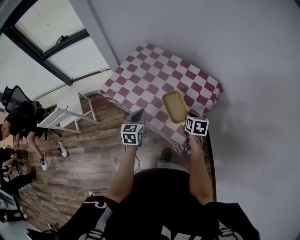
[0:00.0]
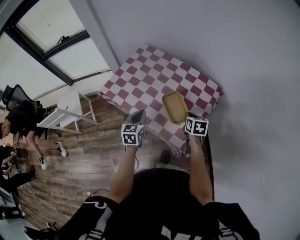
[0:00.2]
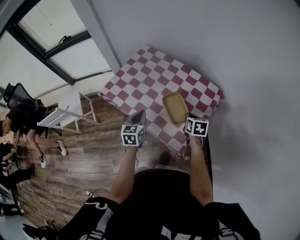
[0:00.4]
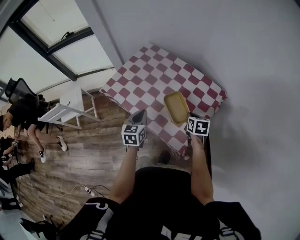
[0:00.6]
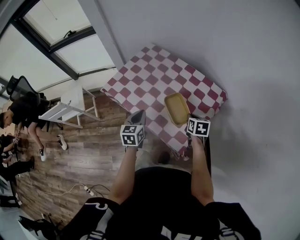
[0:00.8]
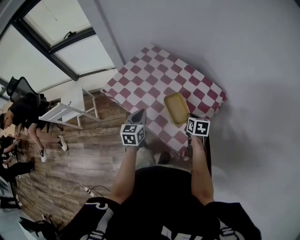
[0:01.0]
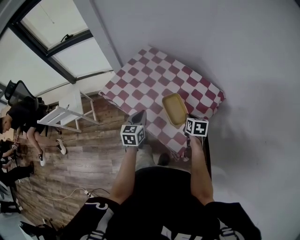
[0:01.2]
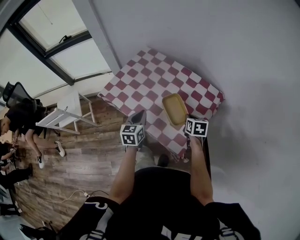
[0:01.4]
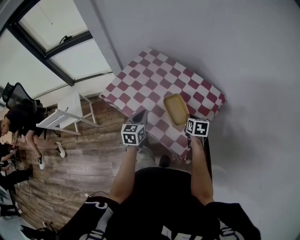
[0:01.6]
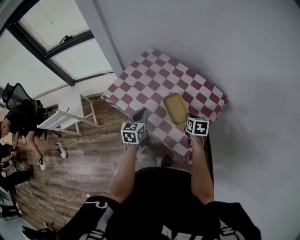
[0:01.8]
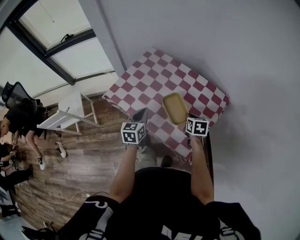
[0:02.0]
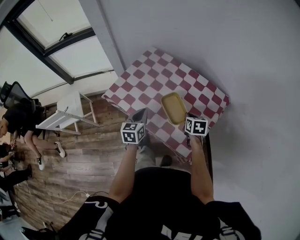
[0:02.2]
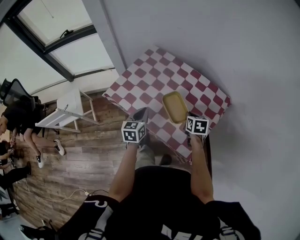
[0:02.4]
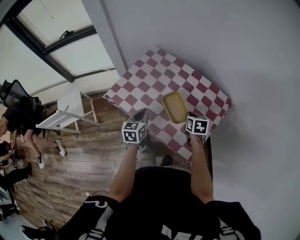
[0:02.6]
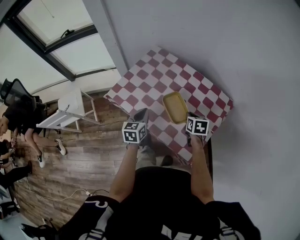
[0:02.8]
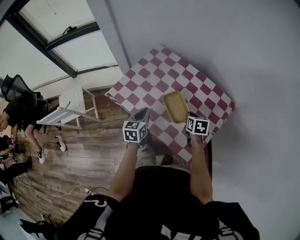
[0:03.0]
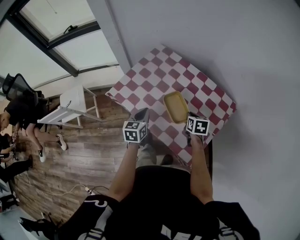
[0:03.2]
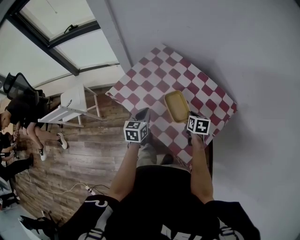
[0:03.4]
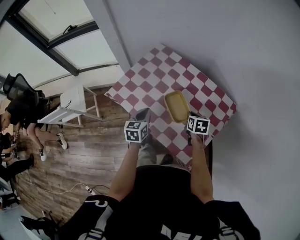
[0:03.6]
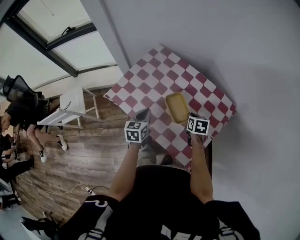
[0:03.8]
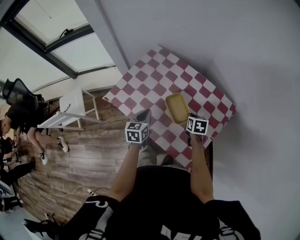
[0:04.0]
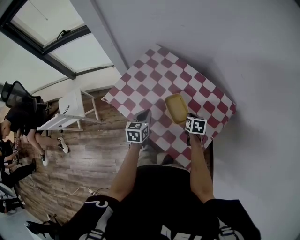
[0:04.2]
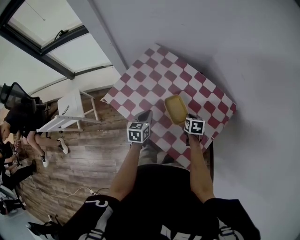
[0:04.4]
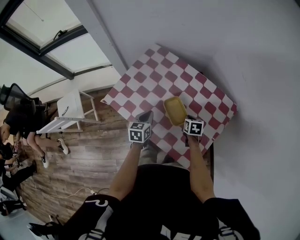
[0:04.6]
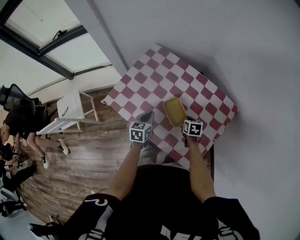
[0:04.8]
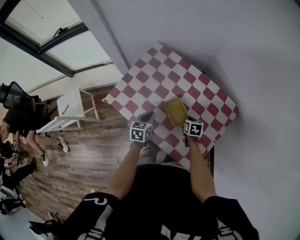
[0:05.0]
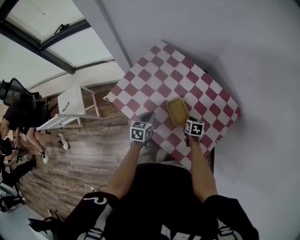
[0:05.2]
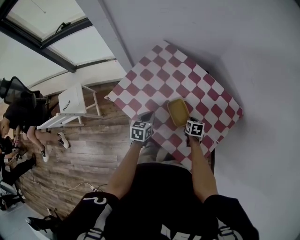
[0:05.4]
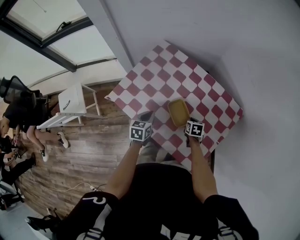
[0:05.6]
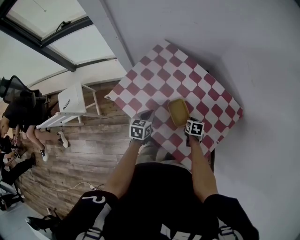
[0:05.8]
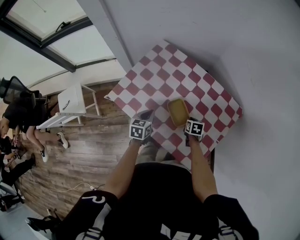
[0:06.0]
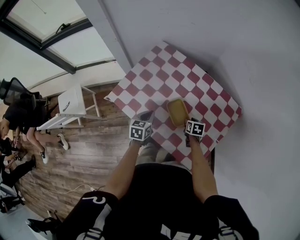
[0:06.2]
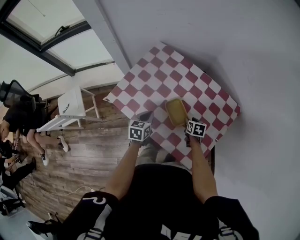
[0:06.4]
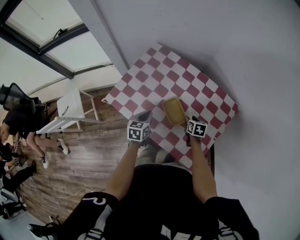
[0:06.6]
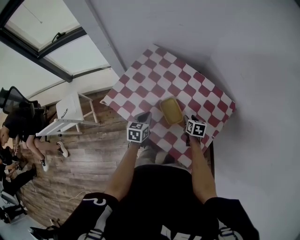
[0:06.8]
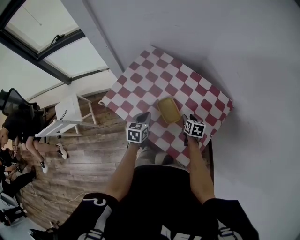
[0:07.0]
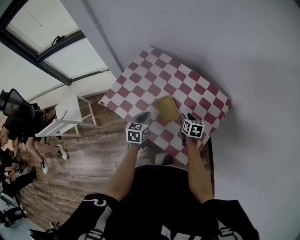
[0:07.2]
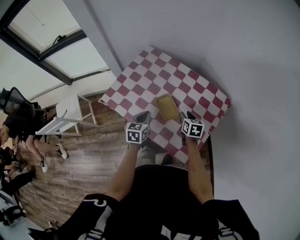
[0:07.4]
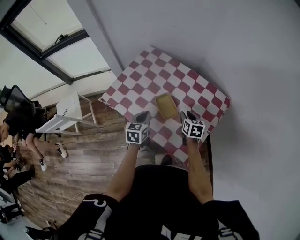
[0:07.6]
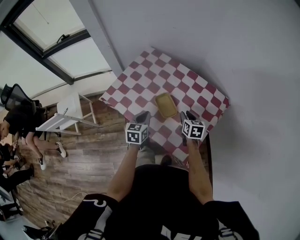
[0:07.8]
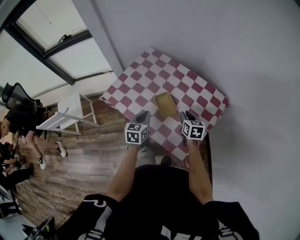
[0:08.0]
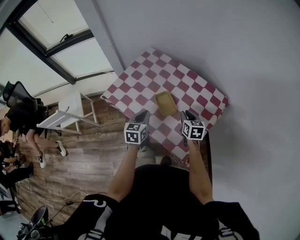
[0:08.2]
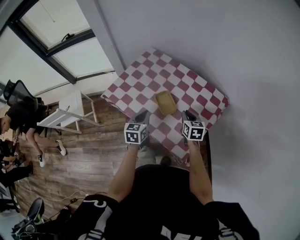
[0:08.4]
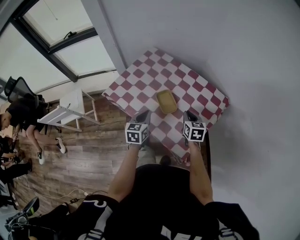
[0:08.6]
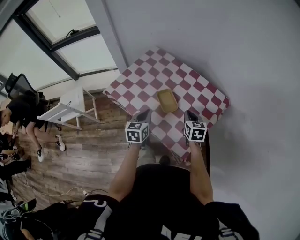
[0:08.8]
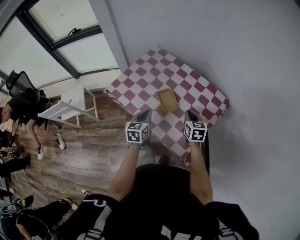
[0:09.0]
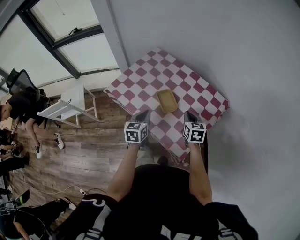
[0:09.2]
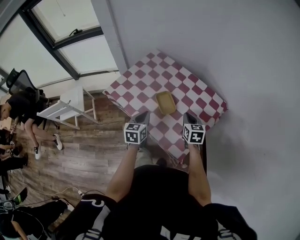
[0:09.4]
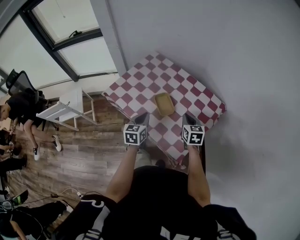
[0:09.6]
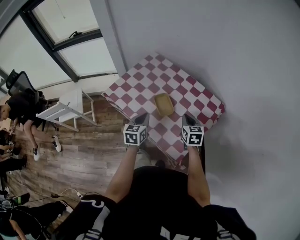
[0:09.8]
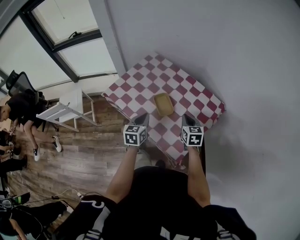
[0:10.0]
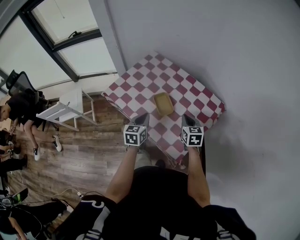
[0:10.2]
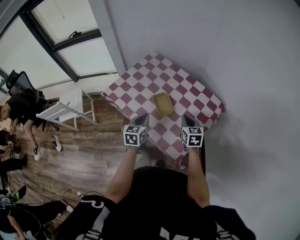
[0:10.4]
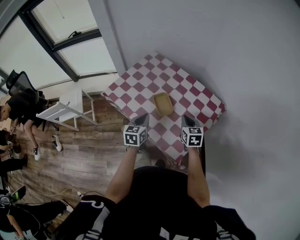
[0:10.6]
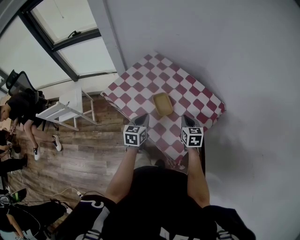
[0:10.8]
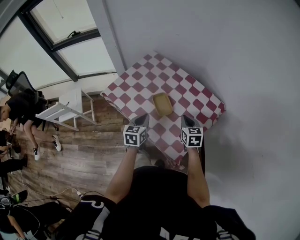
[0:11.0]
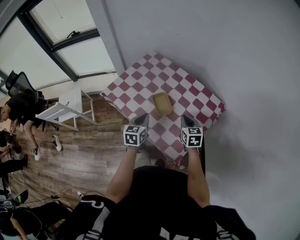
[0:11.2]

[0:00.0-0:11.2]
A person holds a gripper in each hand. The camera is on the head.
0:00.0 to 0:01.6: The grippers both shift forward by approximately 5 cm.
0:01.6 to 0:03.2: The grippers both shift to the left and forward by about 10 cm.
0:03.2 to 0:04.8: The right gripper is displaced downward and forward by roughly 10 cm. The left gripper travels forward and downward by roughly 10 cm.
0:04.8 to 0:06.4: The right gripper opens up.
0:06.4 to 0:08.0: The right gripper travels upward and backward by about 15 cm, swivels approximately 20 degrees, and closes up; the left gripper moves backward, upward and to the right, roughly 15 cm.
0:08.0 to 0:09.6: The left gripper moves approximately 5 cm. The right gripper changes place by approximately 5 cm, and closes.
0:09.6 to 0:11.2: The grippers stay close to where they were, moving slightly.

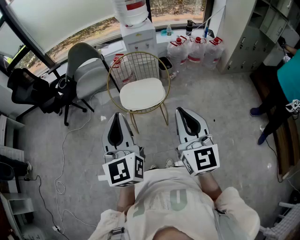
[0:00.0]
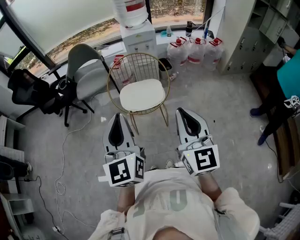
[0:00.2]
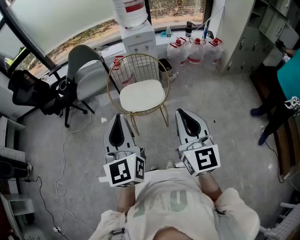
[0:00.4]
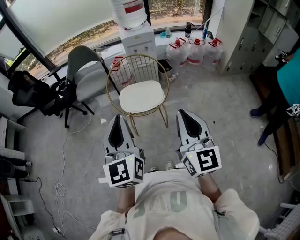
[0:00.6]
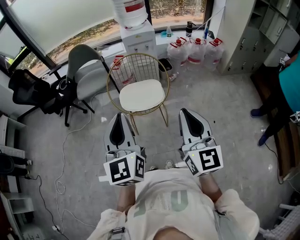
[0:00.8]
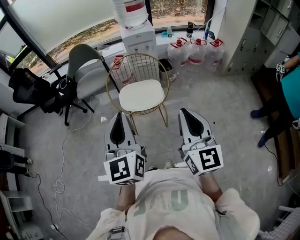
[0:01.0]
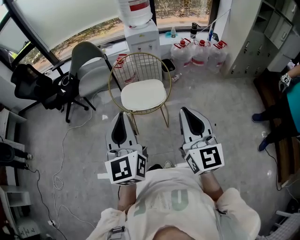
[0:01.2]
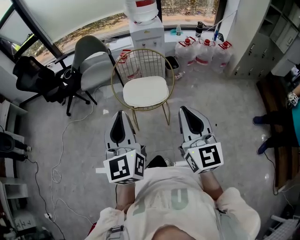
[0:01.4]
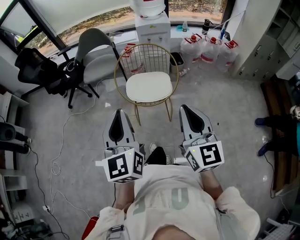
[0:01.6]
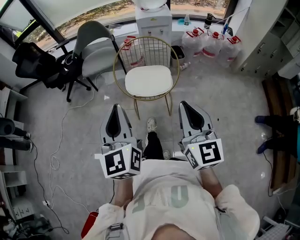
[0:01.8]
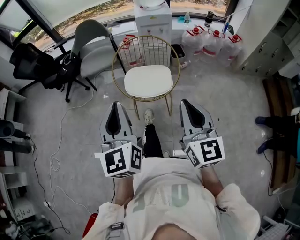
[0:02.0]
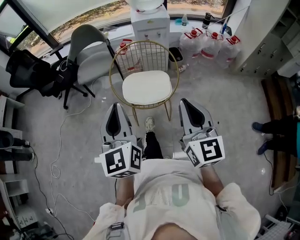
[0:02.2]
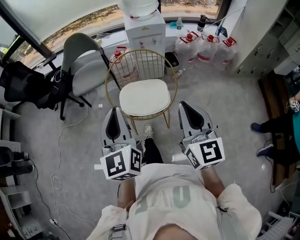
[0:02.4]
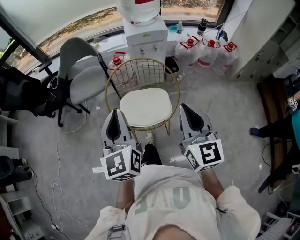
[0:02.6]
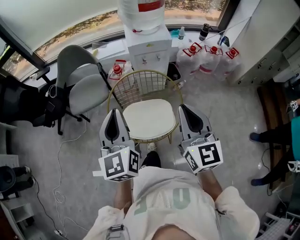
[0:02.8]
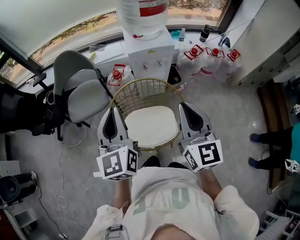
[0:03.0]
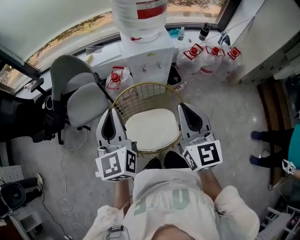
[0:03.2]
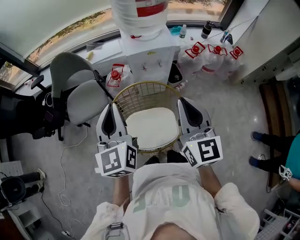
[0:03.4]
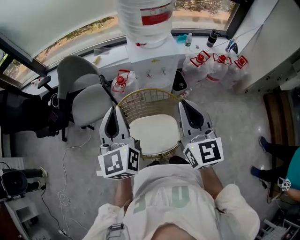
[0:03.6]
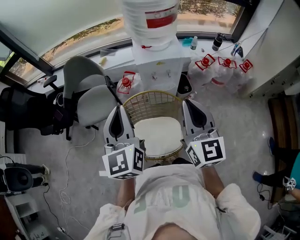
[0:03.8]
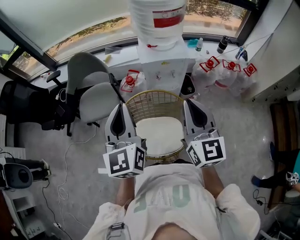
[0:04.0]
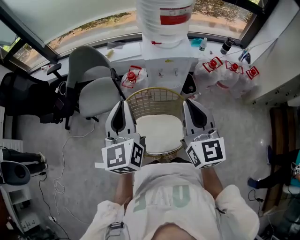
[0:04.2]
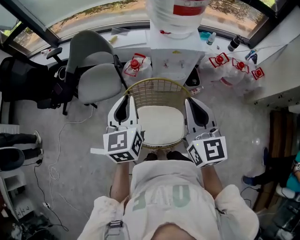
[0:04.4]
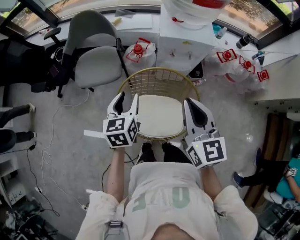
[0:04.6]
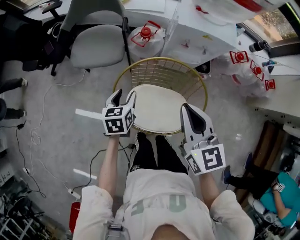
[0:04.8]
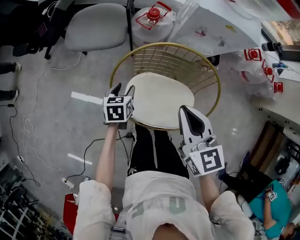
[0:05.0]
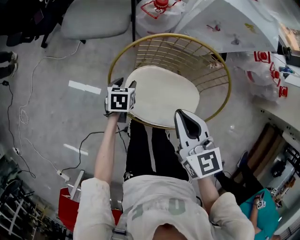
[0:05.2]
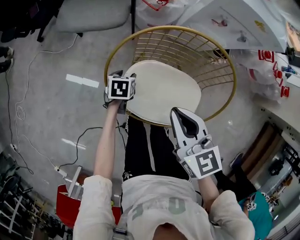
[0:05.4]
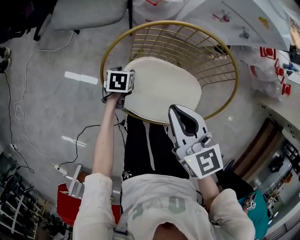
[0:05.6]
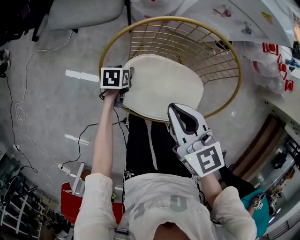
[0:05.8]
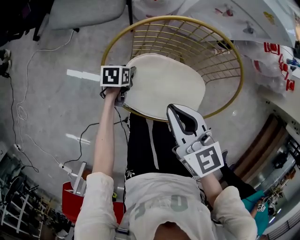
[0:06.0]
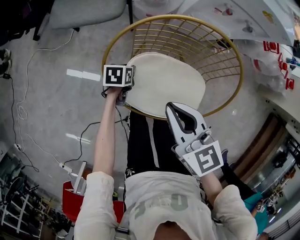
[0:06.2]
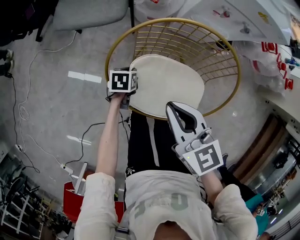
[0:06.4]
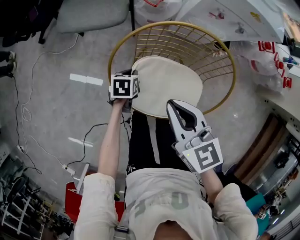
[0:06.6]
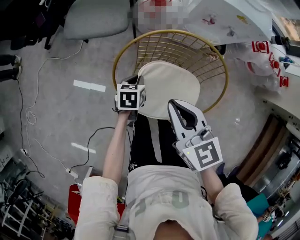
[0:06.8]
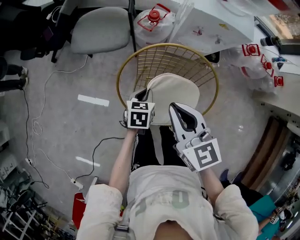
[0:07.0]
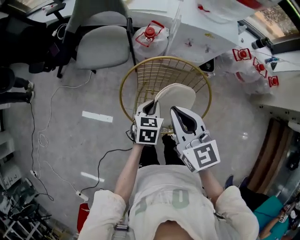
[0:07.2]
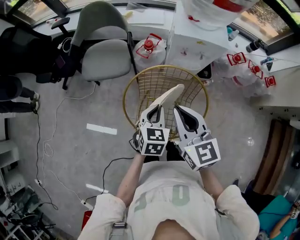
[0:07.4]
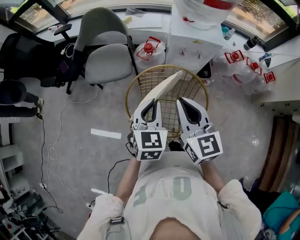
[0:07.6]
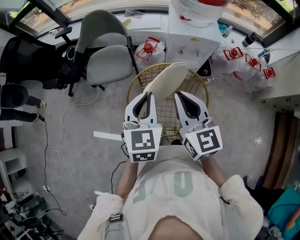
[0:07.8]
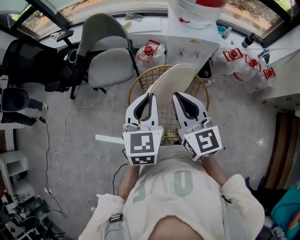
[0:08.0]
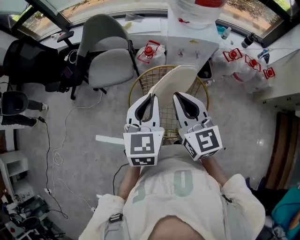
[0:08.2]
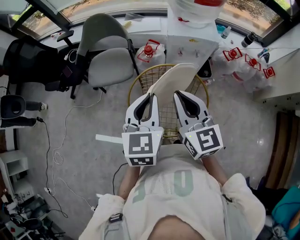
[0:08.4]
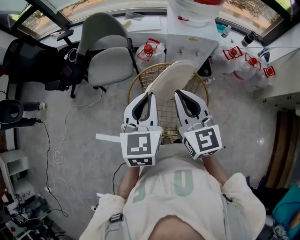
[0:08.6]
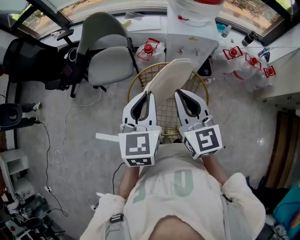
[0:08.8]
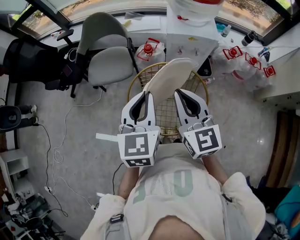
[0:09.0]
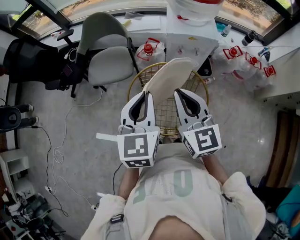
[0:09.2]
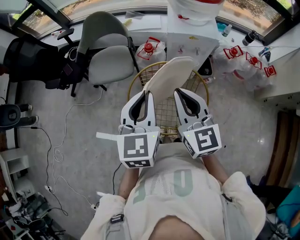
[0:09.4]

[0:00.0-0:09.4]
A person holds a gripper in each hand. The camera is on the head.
0:00.0 to 0:01.6: The grippers make only small movements.
0:01.6 to 0:03.2: Both grippers are carried forward, roughly 50 cm.
0:03.2 to 0:04.8: The right gripper heads downward, to the left and forward, covering some 15 cm, and rotates some 30 degrees. Meanwhile the left gripper travels downward by approximately 30 cm, tips its fingers downward by roughly 40 degrees, and opens.
0:04.8 to 0:06.2: The right gripper shifts approximately 20 cm downward and to the left, and changes its angle by approximately 20 degrees. Meanwhile the left gripper is displaced downward by about 30 cm, and turns by some 30 degrees.
0:06.2 to 0:07.8: The left gripper goes roughly 50 cm upward, angles its fingers upward, by roughly 40 degrees, and closes, while the right gripper moves upward, roughly 25 cm, and rotates roughly 30 degrees.
0:07.8 to 0:09.4: The grippers move only a little.

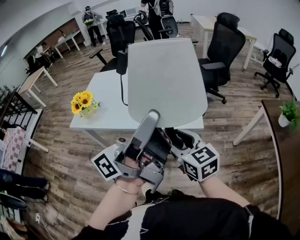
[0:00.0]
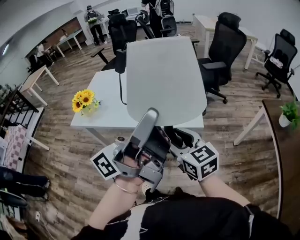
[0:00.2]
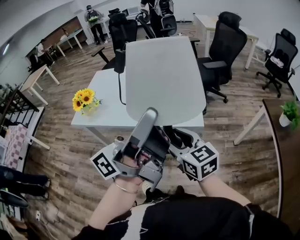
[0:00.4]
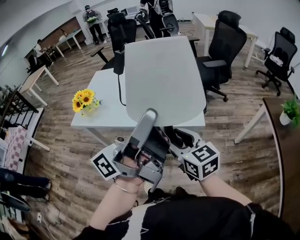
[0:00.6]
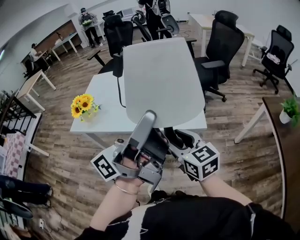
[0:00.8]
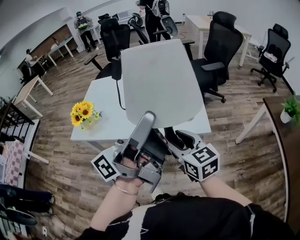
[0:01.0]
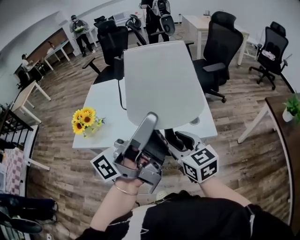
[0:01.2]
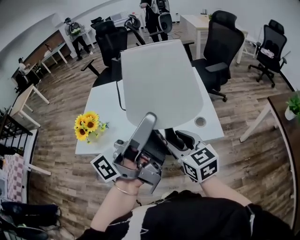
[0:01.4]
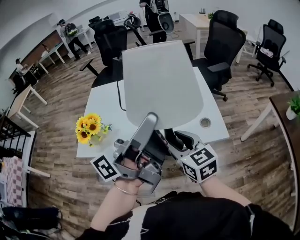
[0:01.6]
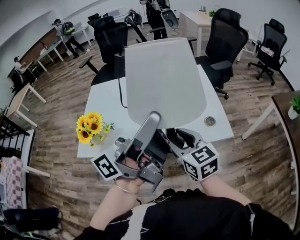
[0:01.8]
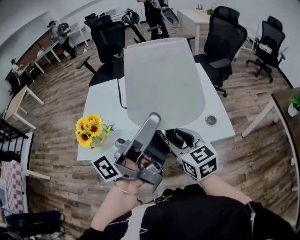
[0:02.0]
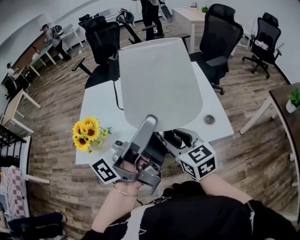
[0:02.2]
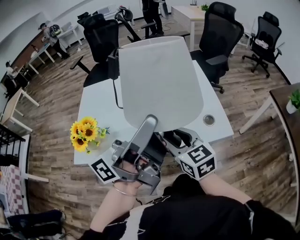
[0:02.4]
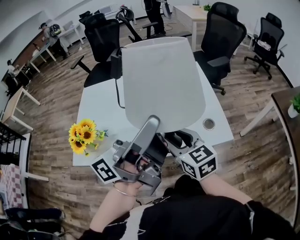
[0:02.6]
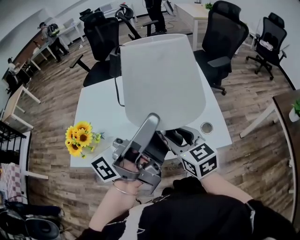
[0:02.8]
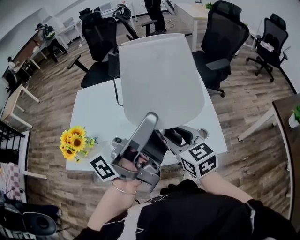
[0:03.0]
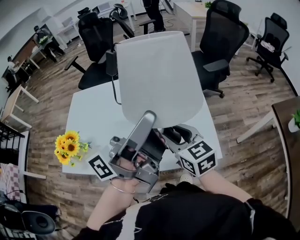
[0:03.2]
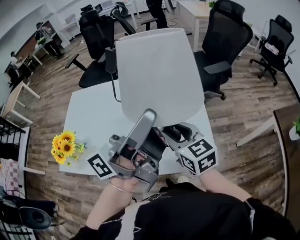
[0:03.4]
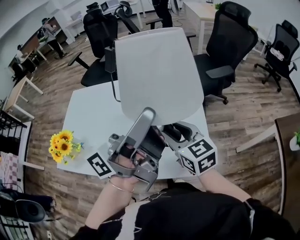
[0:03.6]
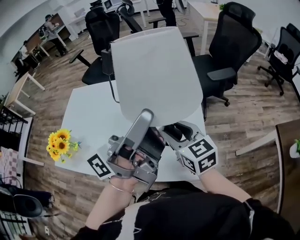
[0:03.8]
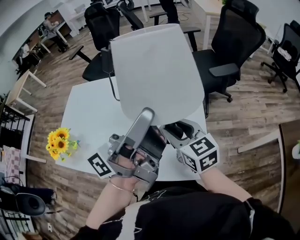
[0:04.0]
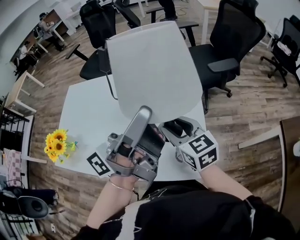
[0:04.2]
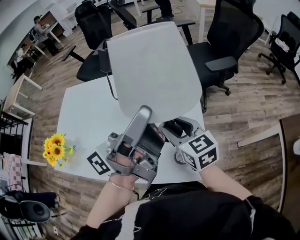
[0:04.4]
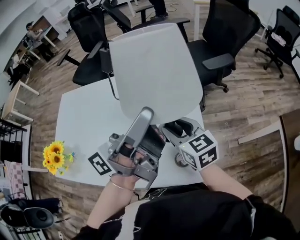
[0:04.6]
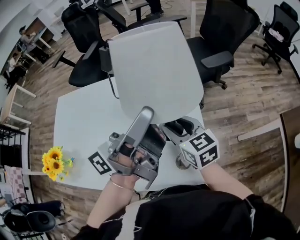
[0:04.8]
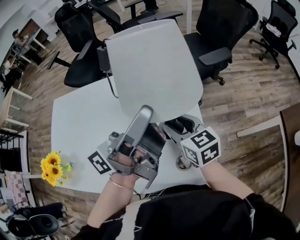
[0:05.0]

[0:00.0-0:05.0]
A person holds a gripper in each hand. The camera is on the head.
0:00.0 to 0:01.6: Both grippers travel together to the left and forward, some 20 cm.
0:01.6 to 0:03.4: The grippers both shift forward and to the right by some 20 cm.
0:03.4 to 0:05.0: The left gripper goes roughly 15 cm forward and downward. Meanwhile the right gripper goes about 15 cm forward, downward and to the right.
